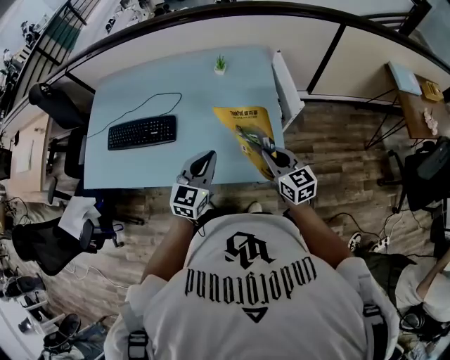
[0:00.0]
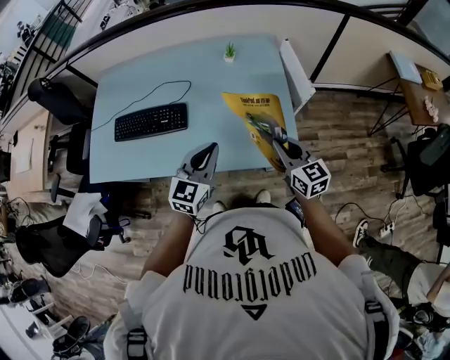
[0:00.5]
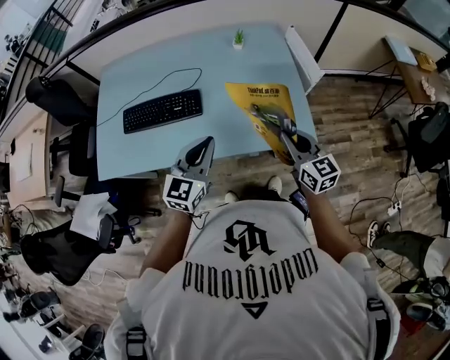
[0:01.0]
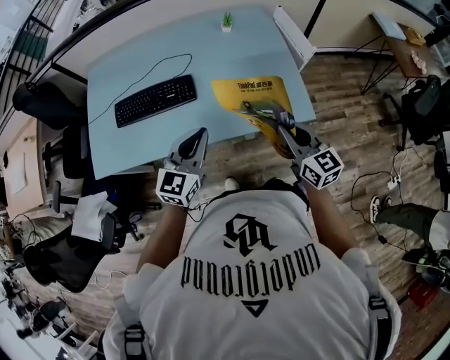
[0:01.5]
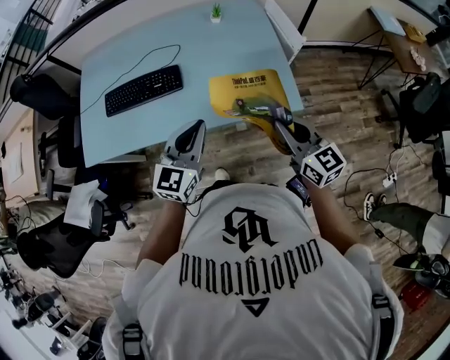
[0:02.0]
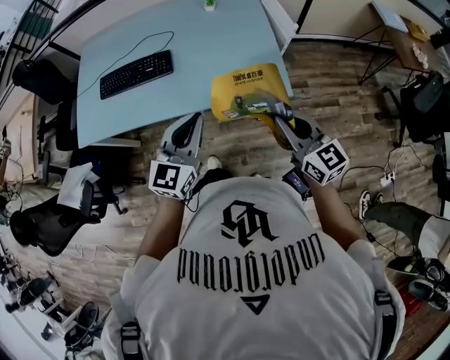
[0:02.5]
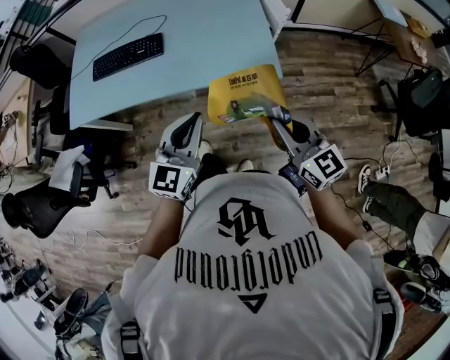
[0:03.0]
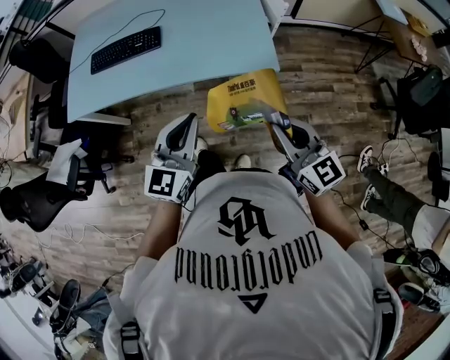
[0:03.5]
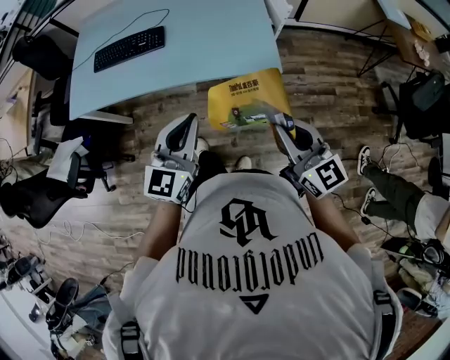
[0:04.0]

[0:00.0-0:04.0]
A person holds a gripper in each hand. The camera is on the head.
0:00.0 to 0:02.0: The left gripper moves backward and to the left, approximately 20 cm. Meanwhile the right gripper goes about 20 cm backward, to the left and upward.
0:02.0 to 0:04.0: Both grippers travel together backward and to the right, some 20 cm.

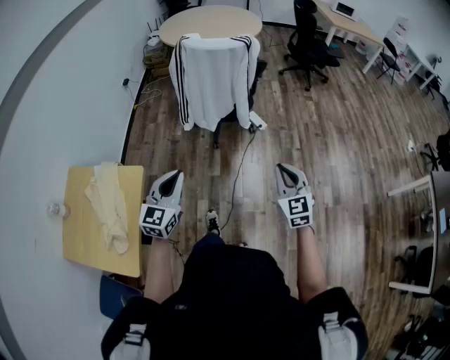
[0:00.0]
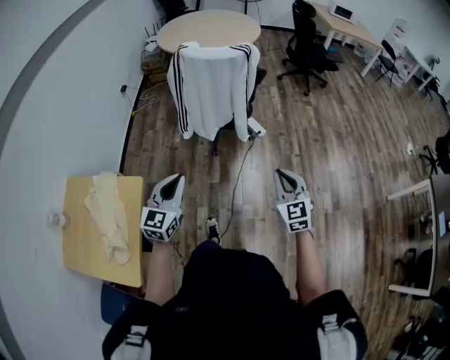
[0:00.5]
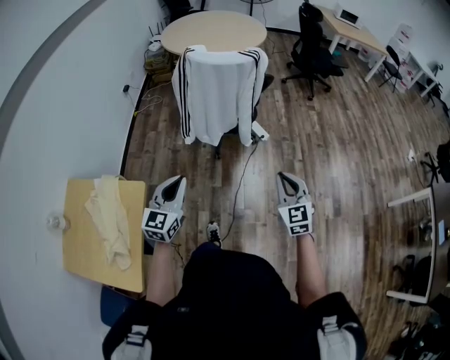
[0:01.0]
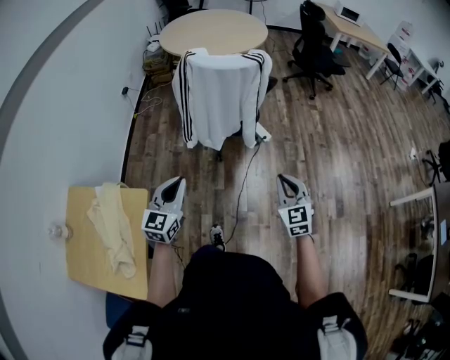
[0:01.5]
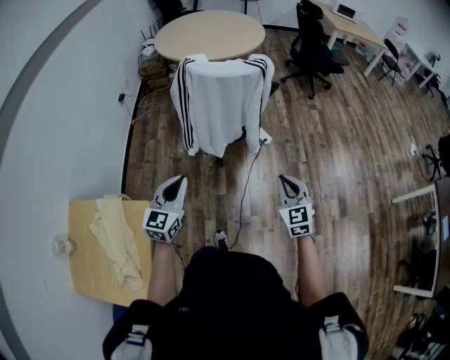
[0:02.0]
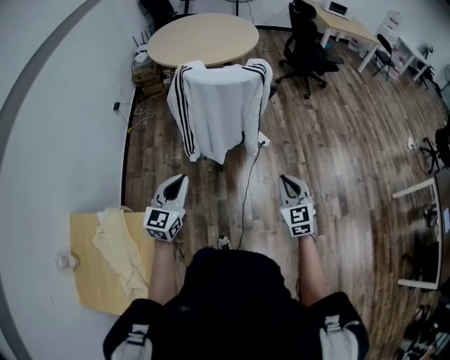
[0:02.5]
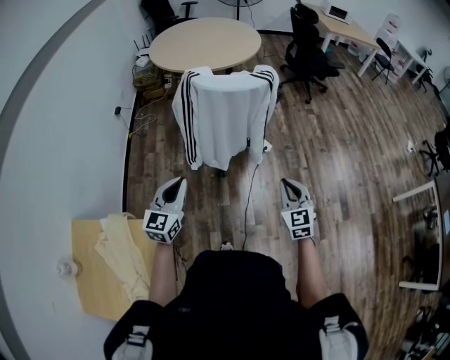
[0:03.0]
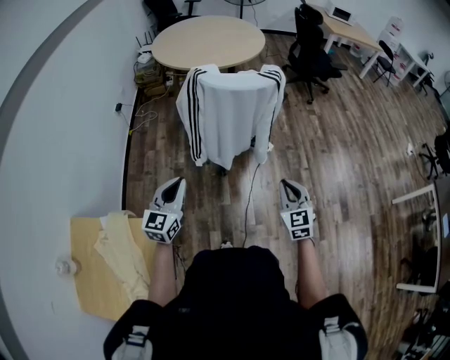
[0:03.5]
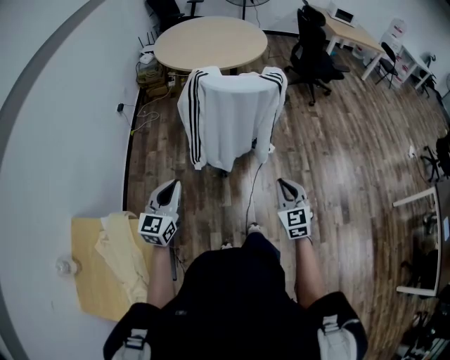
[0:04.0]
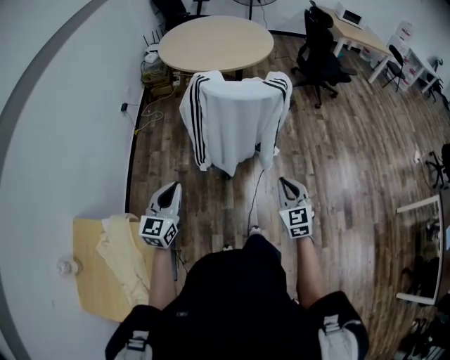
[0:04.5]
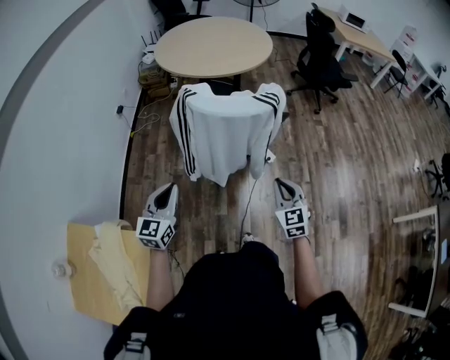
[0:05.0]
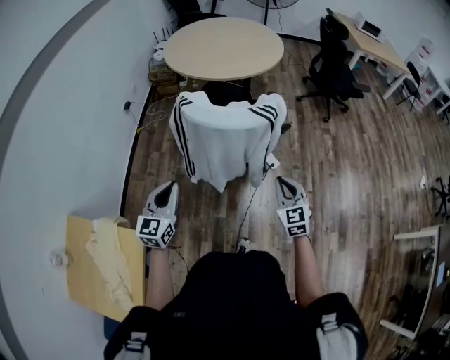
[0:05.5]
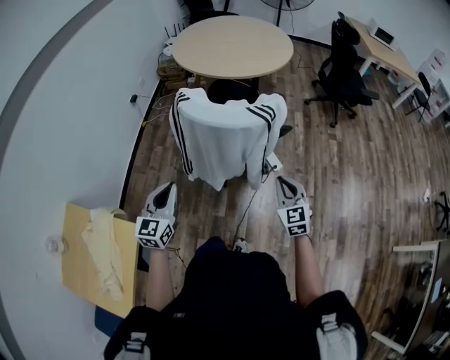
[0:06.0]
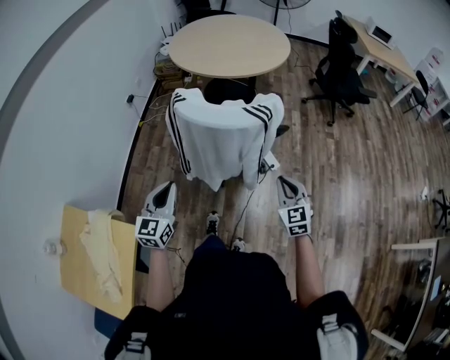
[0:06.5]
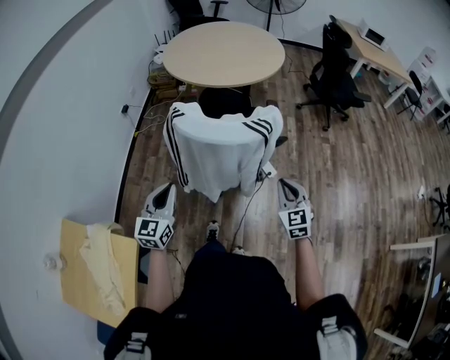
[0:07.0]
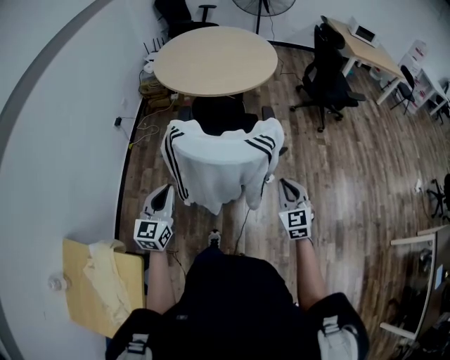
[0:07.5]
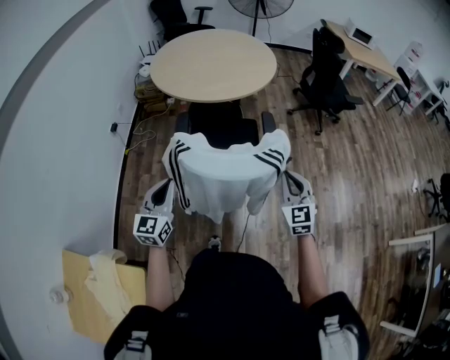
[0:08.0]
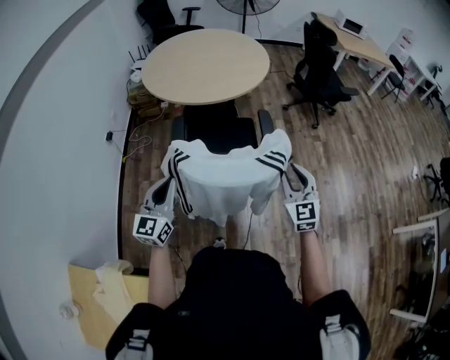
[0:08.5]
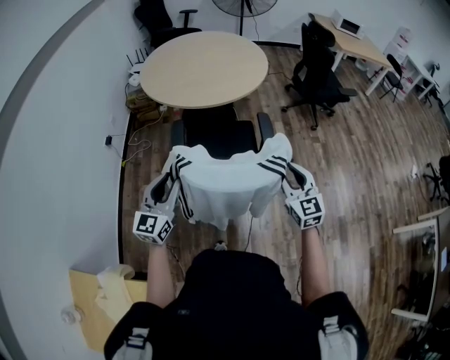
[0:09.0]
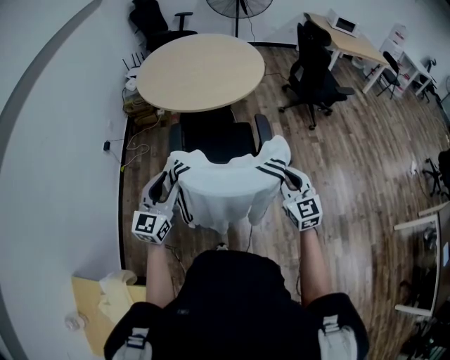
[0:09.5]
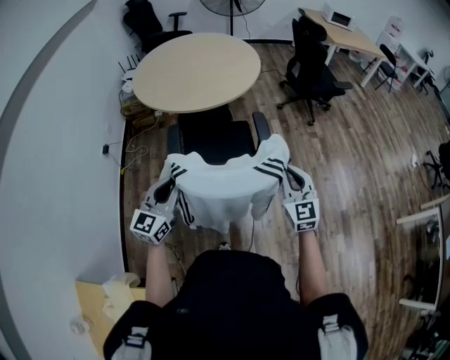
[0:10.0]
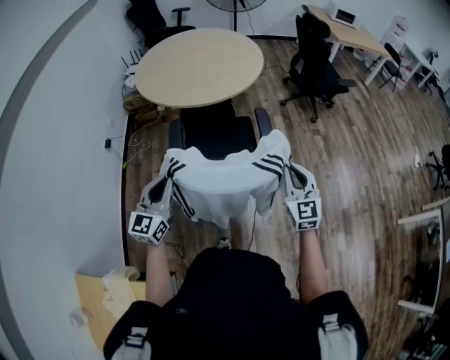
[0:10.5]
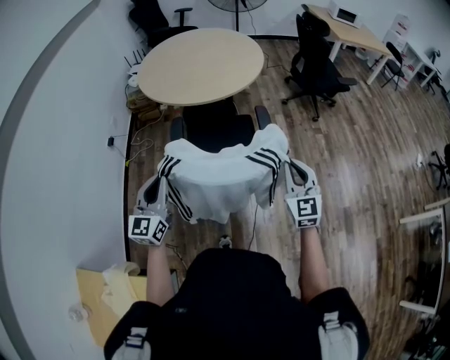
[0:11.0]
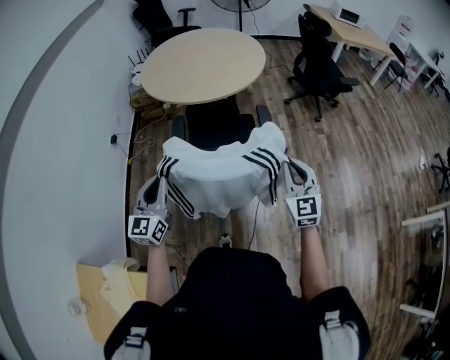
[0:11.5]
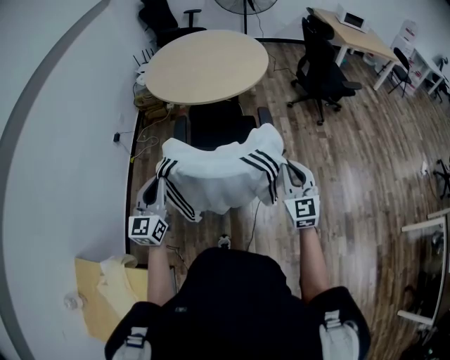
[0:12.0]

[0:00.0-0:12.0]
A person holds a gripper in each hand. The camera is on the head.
0:00.0 to 0:02.0: The left gripper is displaced forward by roughly 15 cm. Meanwhile the right gripper moves forward and to the left, roughly 15 cm.
0:02.0 to 0:04.0: Both grippers move to the left and forward, about 10 cm.
0:04.0 to 0:06.0: Both grippers move forward and to the right, some 20 cm.
0:06.0 to 0:08.0: The right gripper moves forward and upward, approximately 15 cm, while the left gripper travels forward by some 20 cm.
0:08.0 to 0:10.0: The right gripper opens and closes again. Meanwhile the left gripper goes approximately 5 cm forward, and opens, then closes once more.
0:10.0 to 0:12.0: The left gripper shifts approximately 5 cm backward, and turns by some 20 degrees. Meanwhile the right gripper shifts by approximately 5 cm.

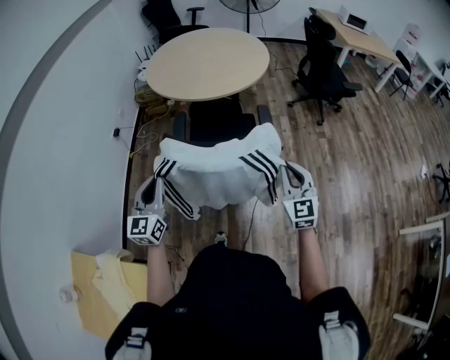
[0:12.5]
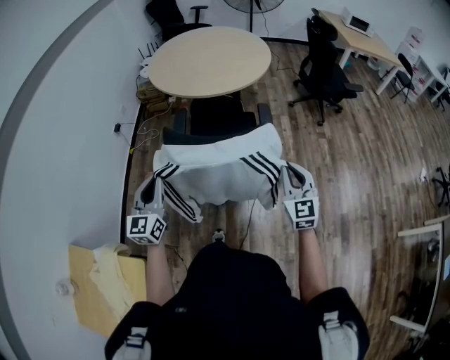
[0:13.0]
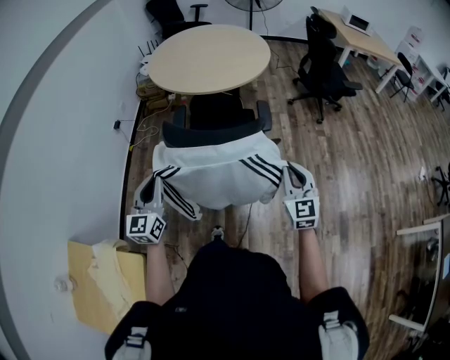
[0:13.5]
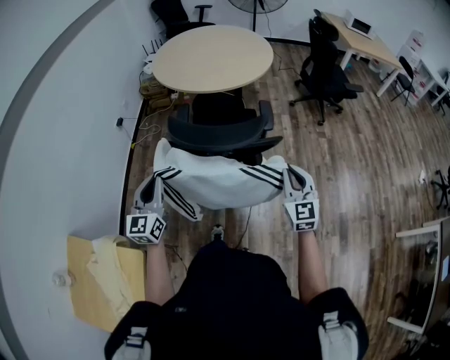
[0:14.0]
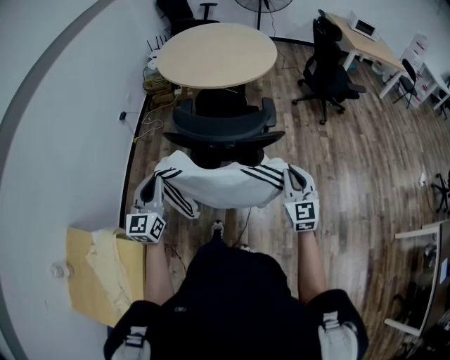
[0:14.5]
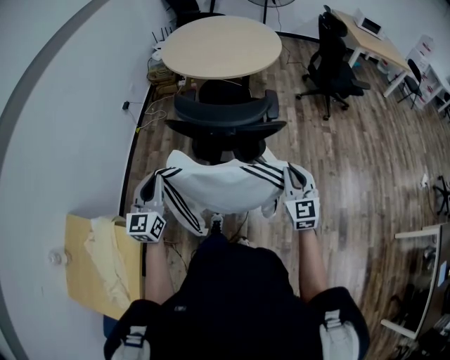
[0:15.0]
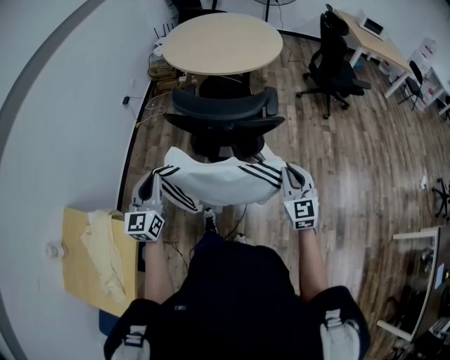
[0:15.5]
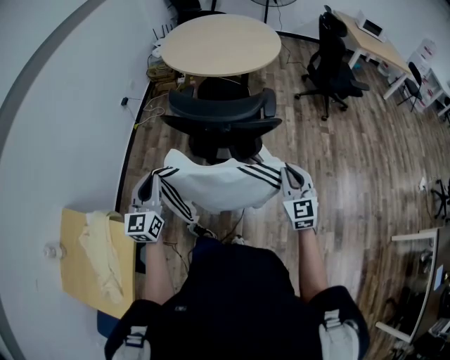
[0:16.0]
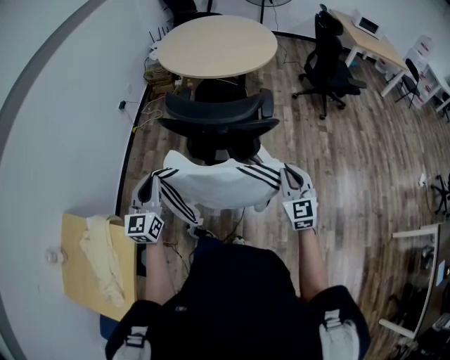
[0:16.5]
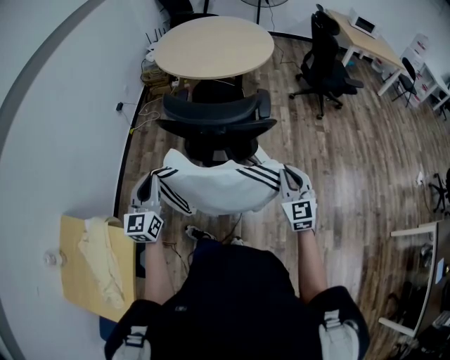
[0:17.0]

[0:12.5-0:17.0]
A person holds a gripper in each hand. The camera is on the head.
0:12.5 to 0:14.5: The two grippers go some 10 cm backward.
0:14.5 to 0:17.0: The right gripper ends up roughly 5 cm from where it was. The left gripper ends up about 5 cm from where it was.

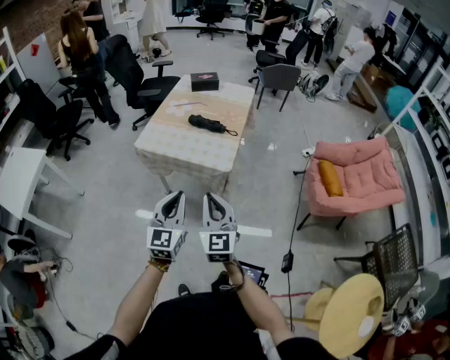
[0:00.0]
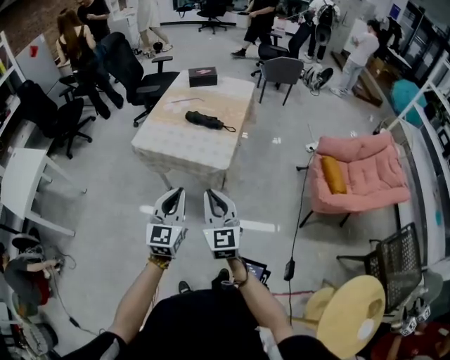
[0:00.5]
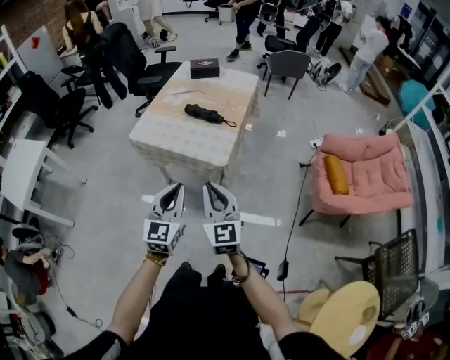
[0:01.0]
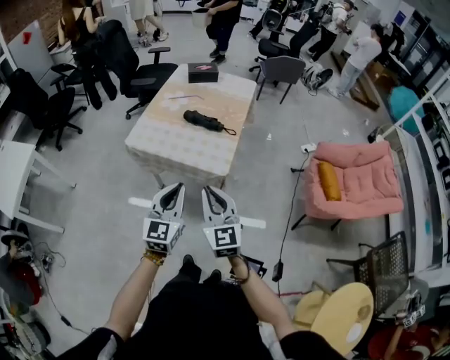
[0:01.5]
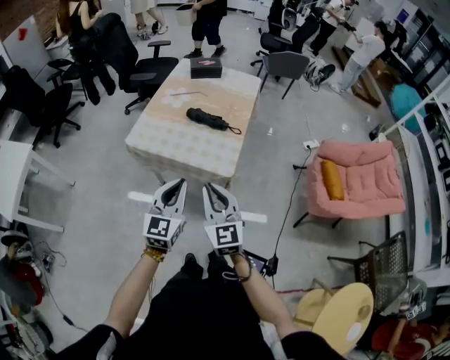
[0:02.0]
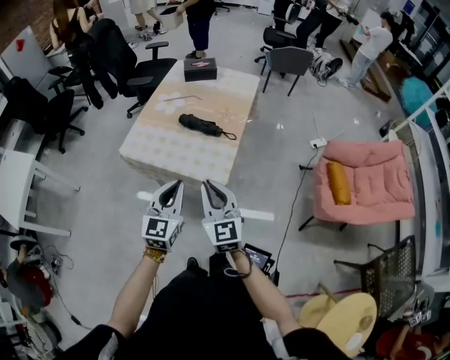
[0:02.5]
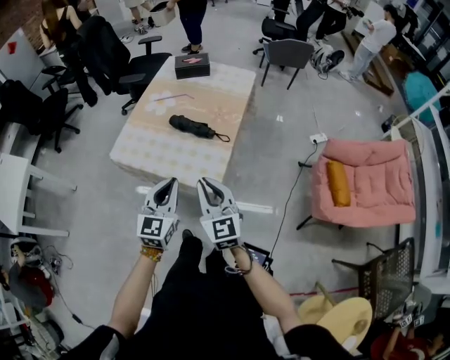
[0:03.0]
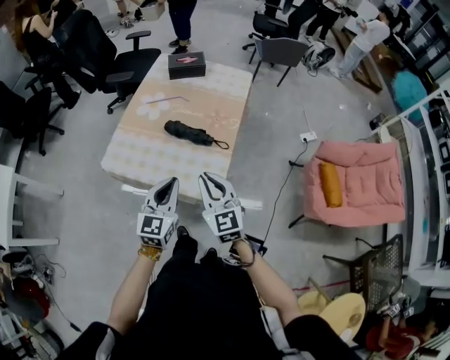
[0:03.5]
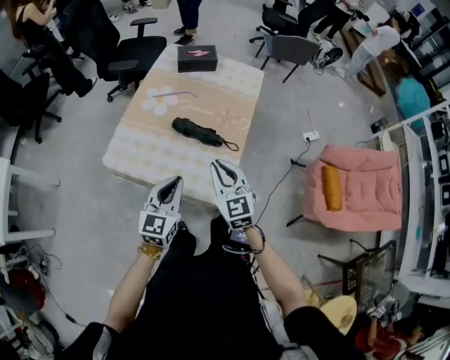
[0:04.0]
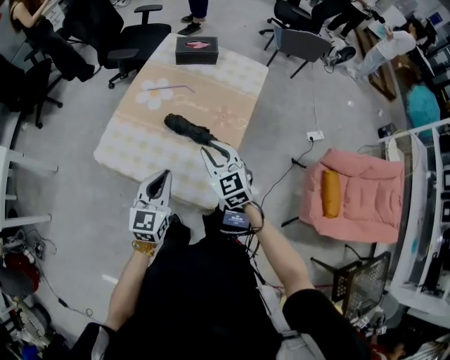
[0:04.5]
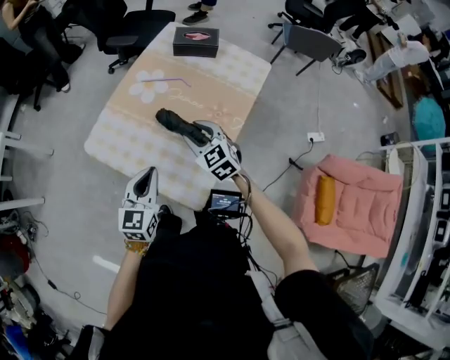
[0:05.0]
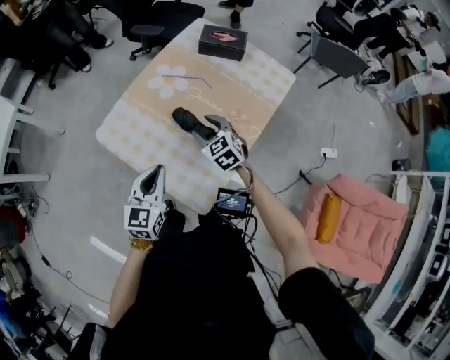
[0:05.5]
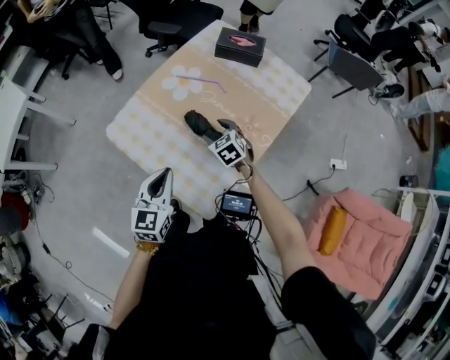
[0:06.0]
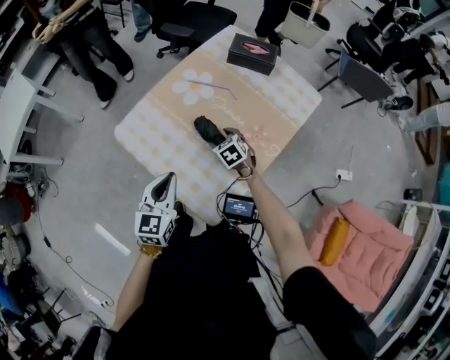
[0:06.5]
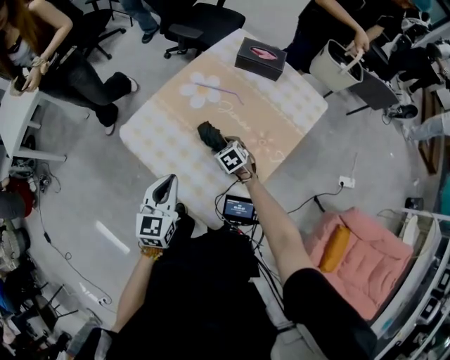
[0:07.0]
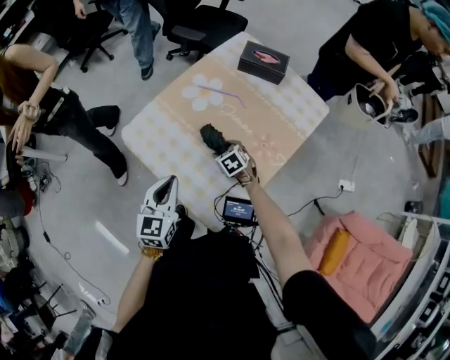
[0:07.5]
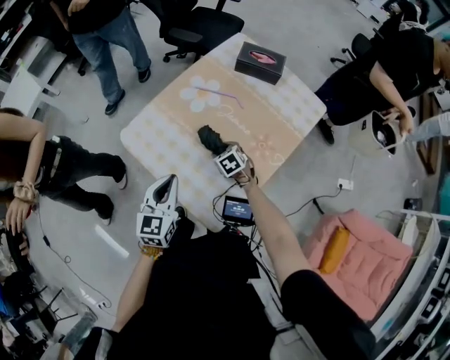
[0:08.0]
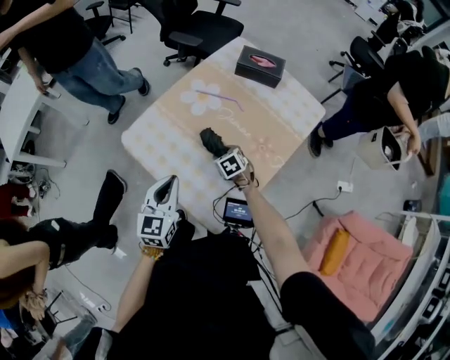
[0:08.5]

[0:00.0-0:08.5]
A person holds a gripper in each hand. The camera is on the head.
0:00.0 to 0:02.0: Both grippers move forward, approximately 15 cm.
0:02.0 to 0:04.0: Both grippers move forward, approximately 25 cm.
0:04.0 to 0:06.5: The right gripper travels downward by approximately 25 cm, points its fingers approximately 40 degrees further downward, and opens up. Meanwhile the left gripper ends up roughly 10 cm from where it was, and rotates approximately 30 degrees.
0:06.5 to 0:08.5: There are only small adjustments of the grippers.
